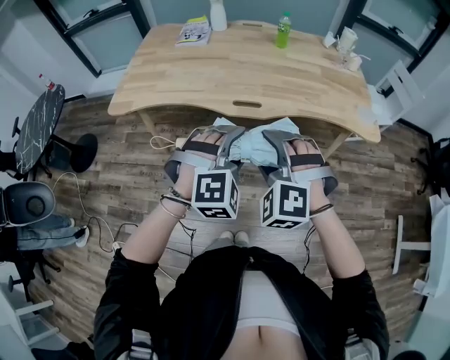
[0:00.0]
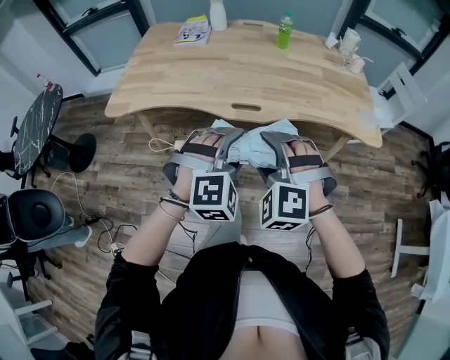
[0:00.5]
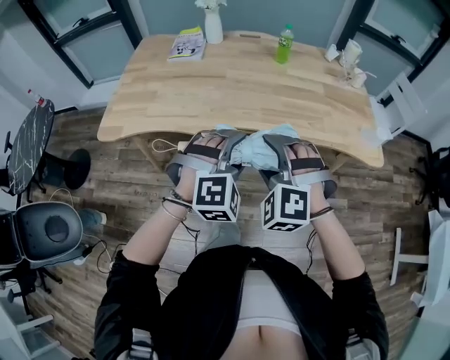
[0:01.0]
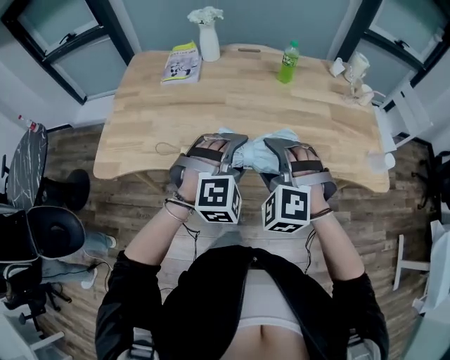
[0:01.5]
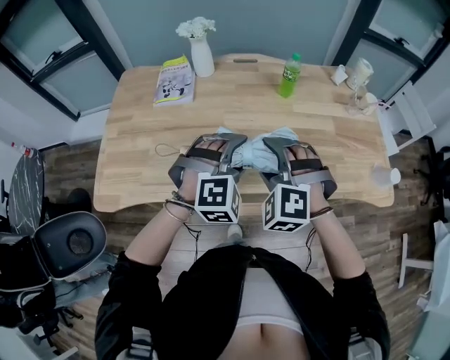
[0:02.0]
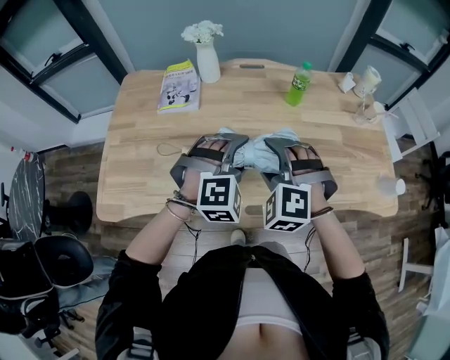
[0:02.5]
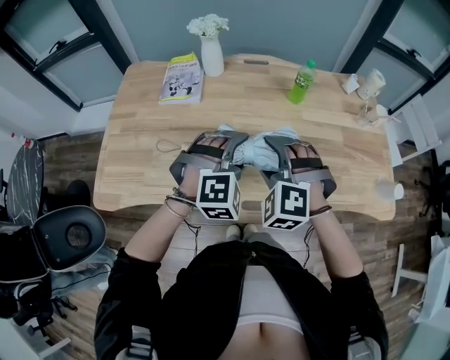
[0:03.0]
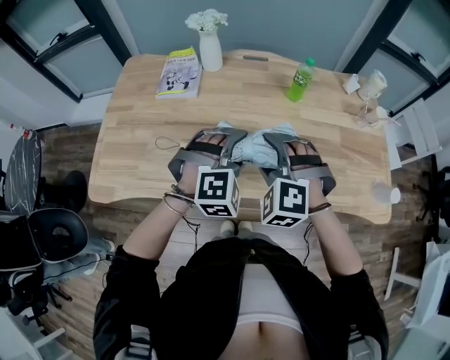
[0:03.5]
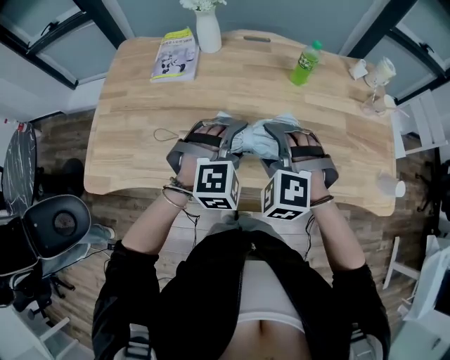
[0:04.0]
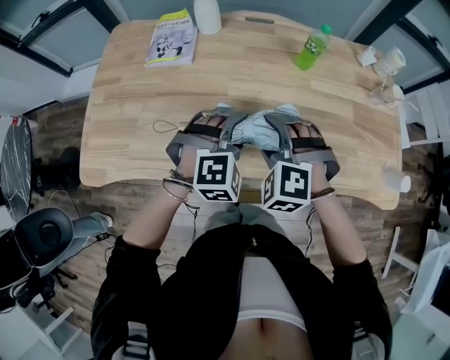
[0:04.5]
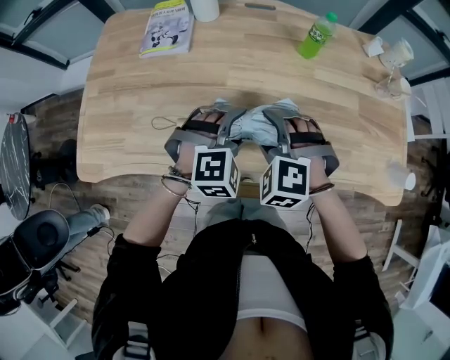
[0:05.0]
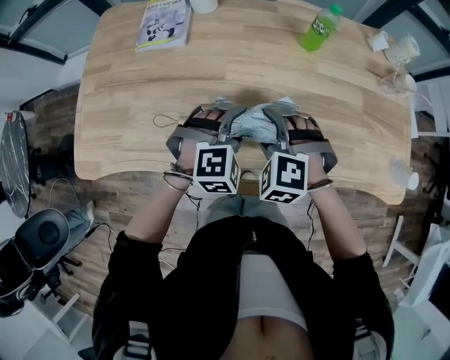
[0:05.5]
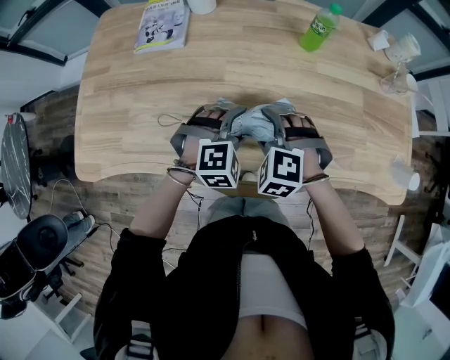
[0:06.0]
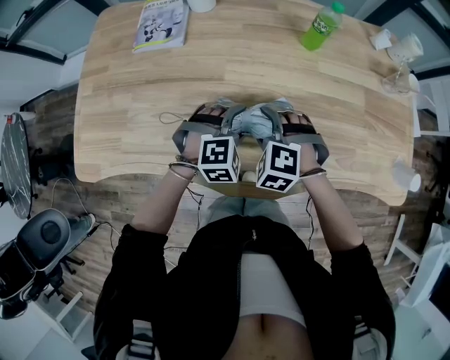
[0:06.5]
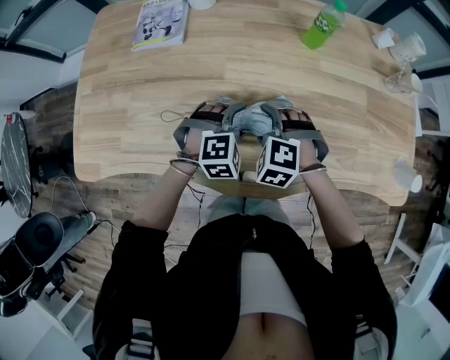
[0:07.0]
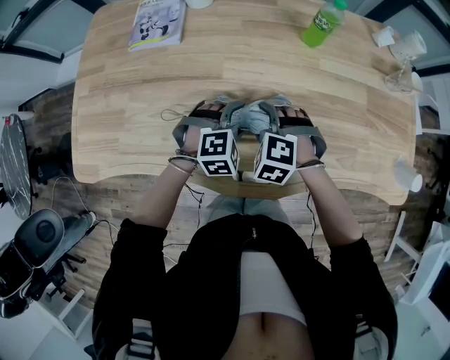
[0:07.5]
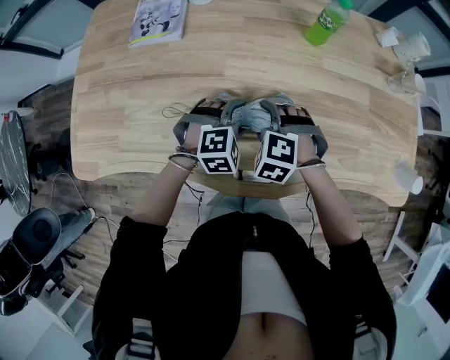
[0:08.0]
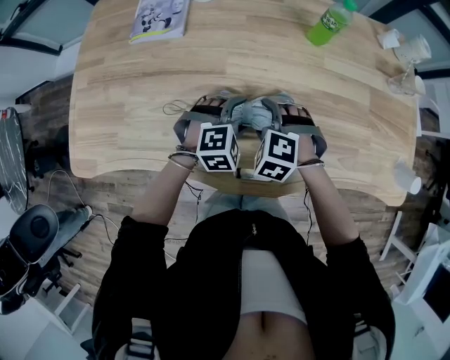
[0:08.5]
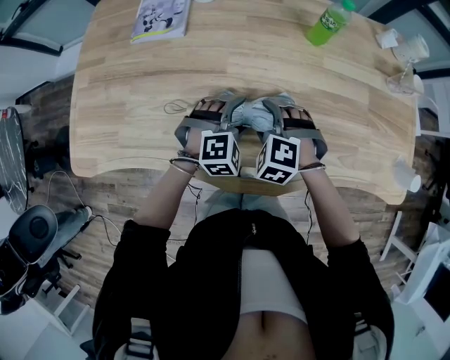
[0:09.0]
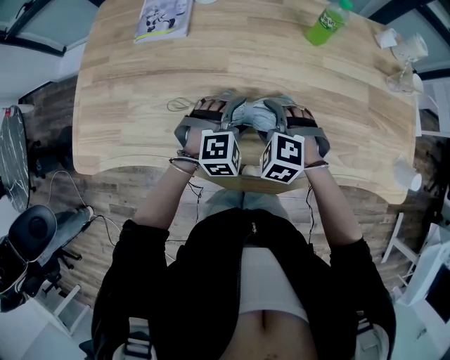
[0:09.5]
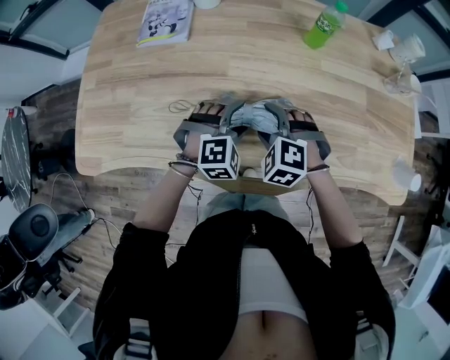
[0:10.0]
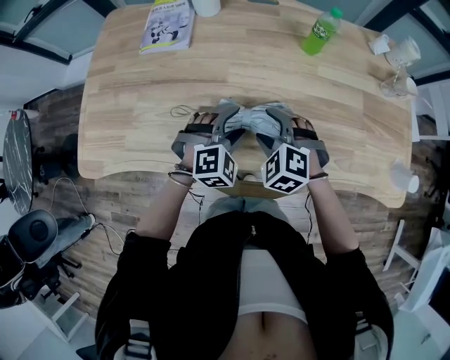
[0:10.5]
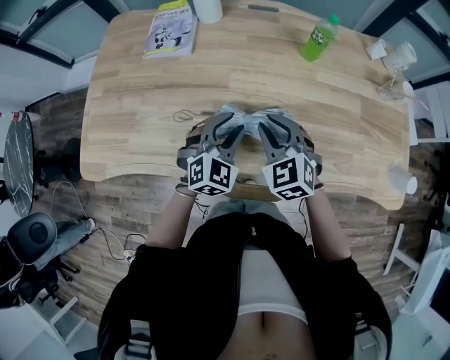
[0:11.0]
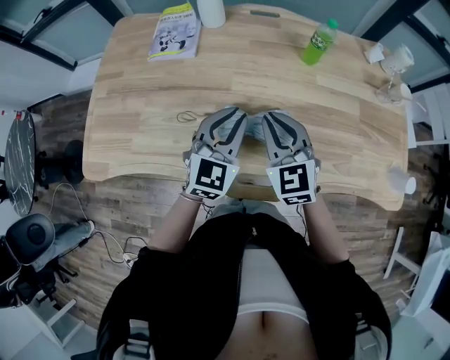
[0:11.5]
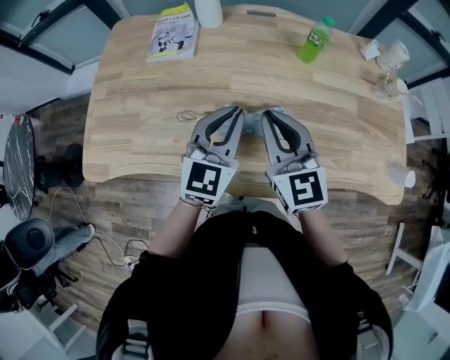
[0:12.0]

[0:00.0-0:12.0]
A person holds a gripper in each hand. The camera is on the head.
0.0 to 2.0 s: The grippers both shift forward by some 35 cm.
2.0 to 4.0 s: The left gripper changes place by approximately 5 cm. The right gripper moves roughly 5 cm.
4.0 to 6.0 s: The grippers both shift downward by roughly 10 cm.
6.0 to 8.0 s: The two grippers go roughly 5 cm downward.
8.0 to 10.0 s: The grippers move only a little.
10.0 to 12.0 s: The grippers both shift upward by roughly 20 cm. The left gripper tips its fingers upward by some 40 degrees, and closes up, while the right gripper tips its fingers upward by some 50 degrees, and closes its fingers.

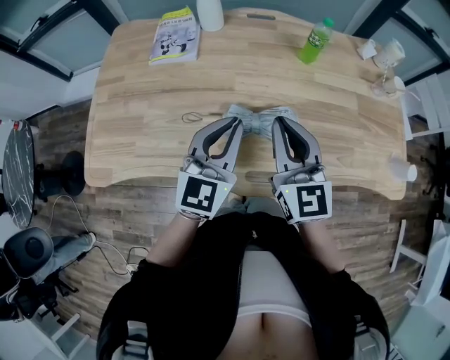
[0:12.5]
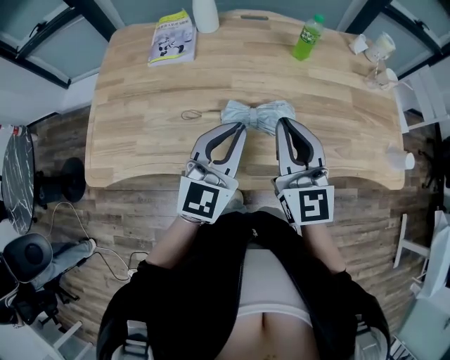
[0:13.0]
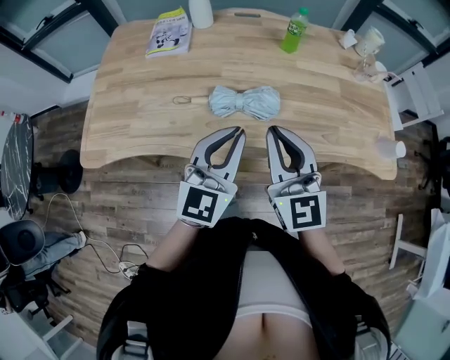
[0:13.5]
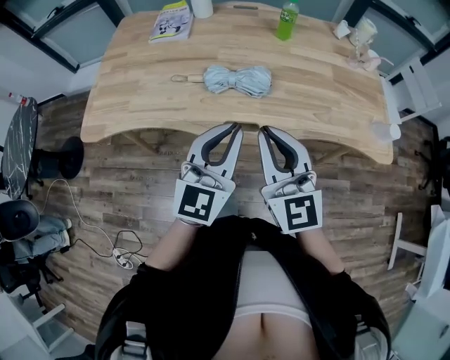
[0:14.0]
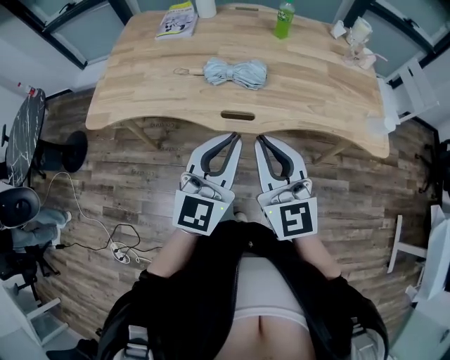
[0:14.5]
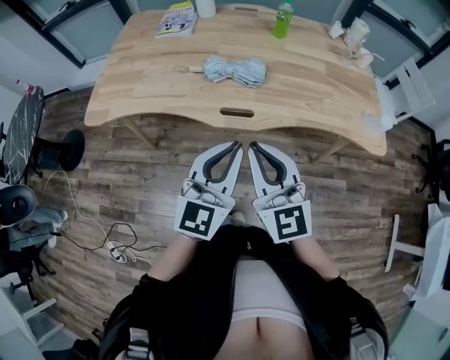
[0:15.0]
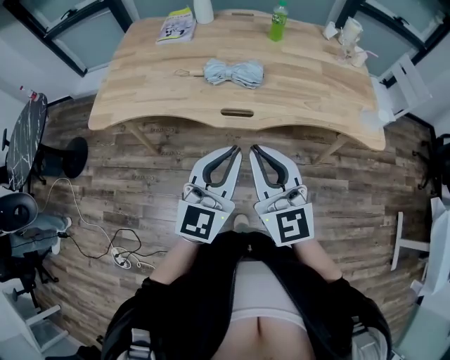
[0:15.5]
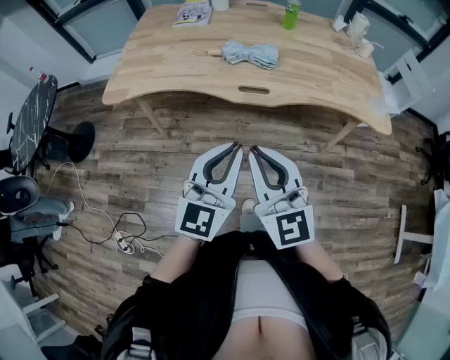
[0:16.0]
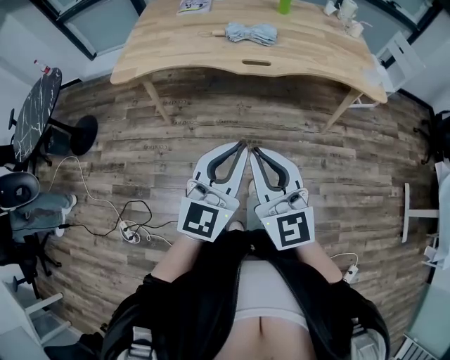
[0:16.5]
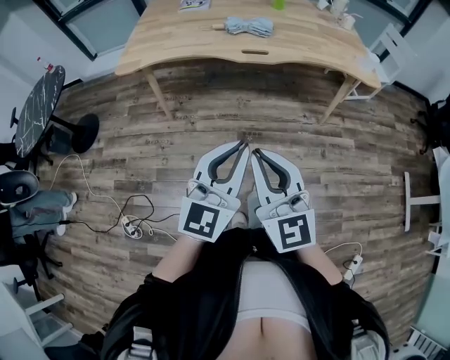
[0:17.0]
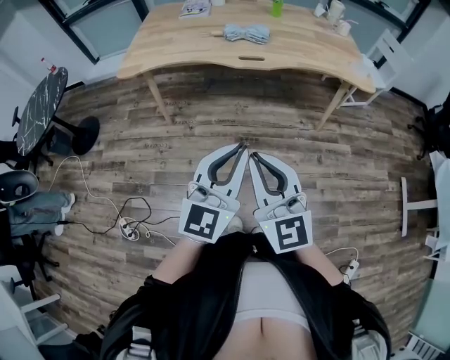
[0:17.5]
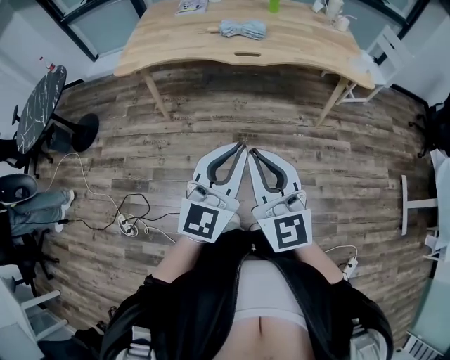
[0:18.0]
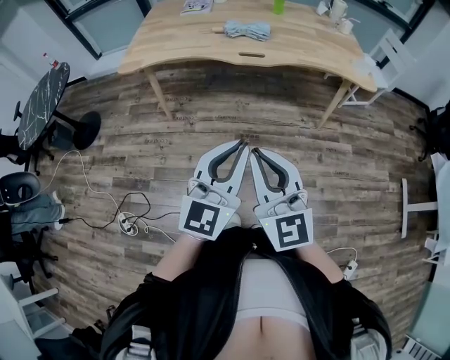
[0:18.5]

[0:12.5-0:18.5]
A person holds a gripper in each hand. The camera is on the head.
12.5 to 14.5 s: The two grippers go roughly 30 cm backward.
14.5 to 16.5 s: Both grippers move backward, some 30 cm.
16.5 to 18.5 s: The two grippers go approximately 10 cm backward.

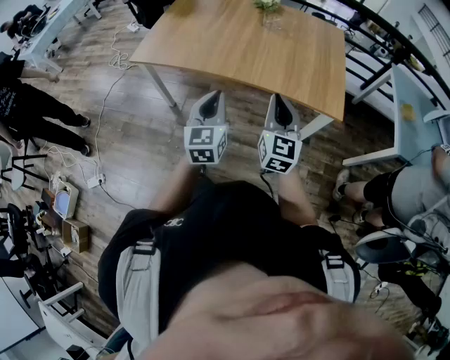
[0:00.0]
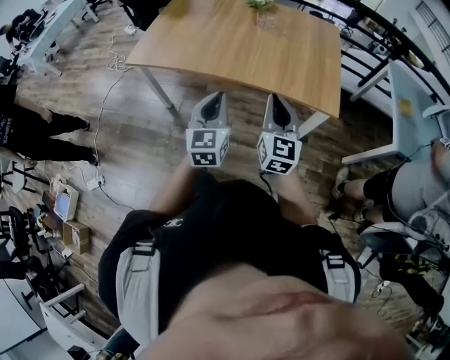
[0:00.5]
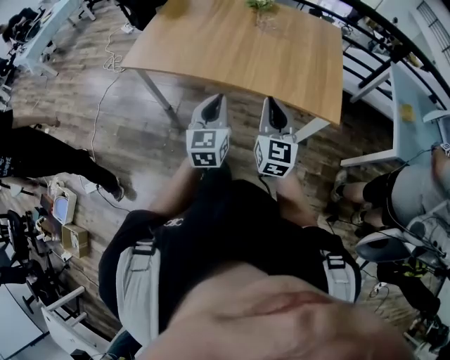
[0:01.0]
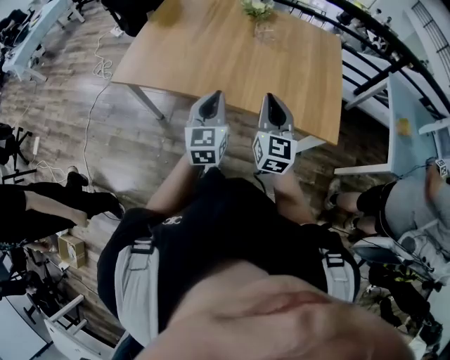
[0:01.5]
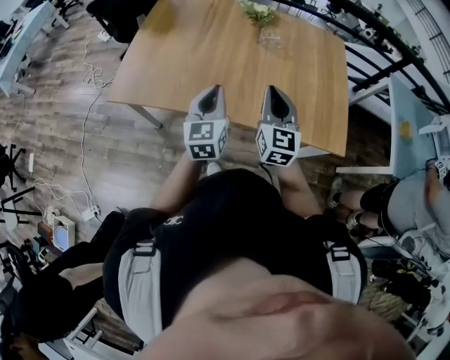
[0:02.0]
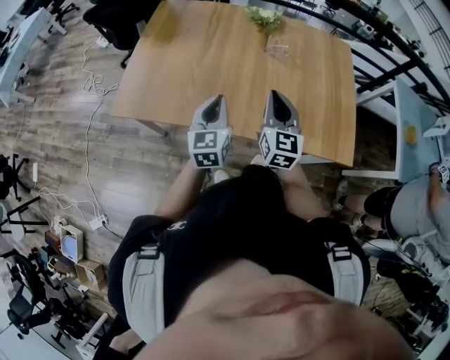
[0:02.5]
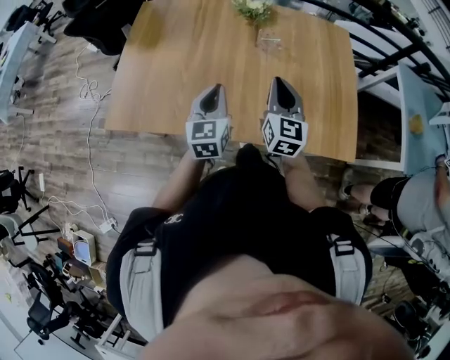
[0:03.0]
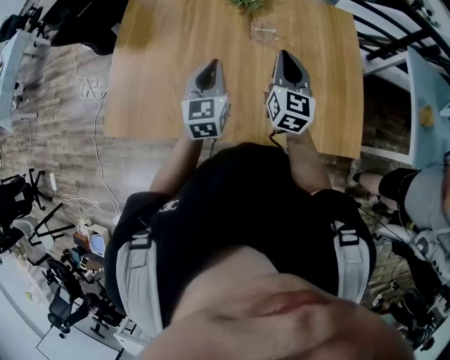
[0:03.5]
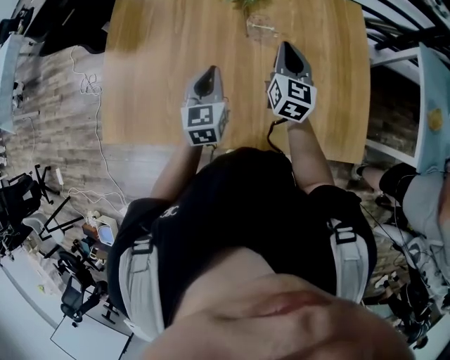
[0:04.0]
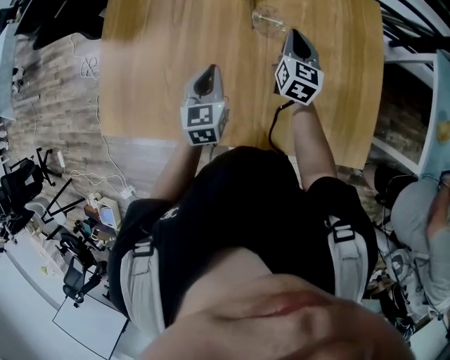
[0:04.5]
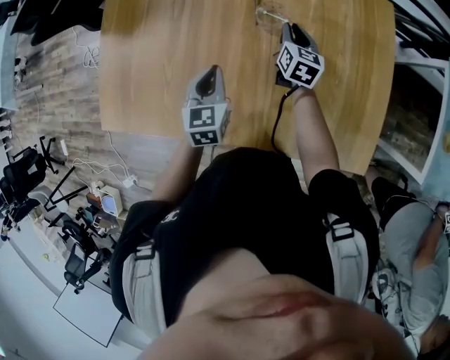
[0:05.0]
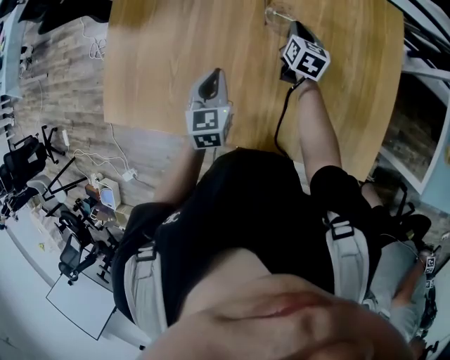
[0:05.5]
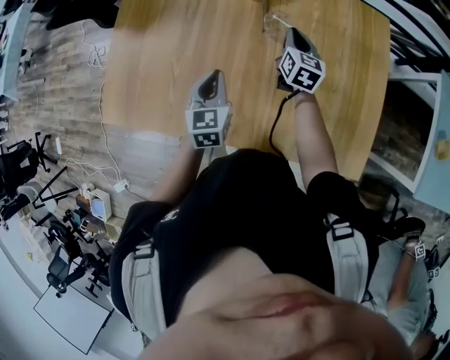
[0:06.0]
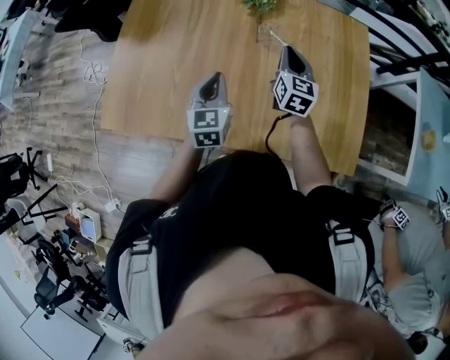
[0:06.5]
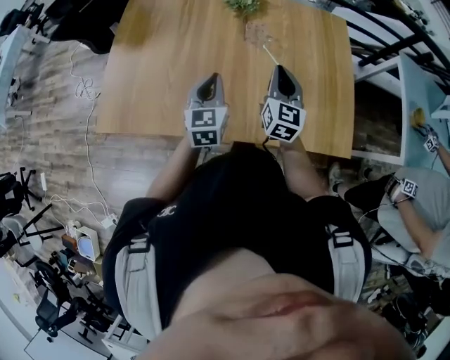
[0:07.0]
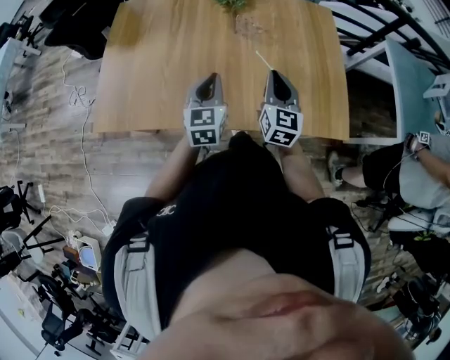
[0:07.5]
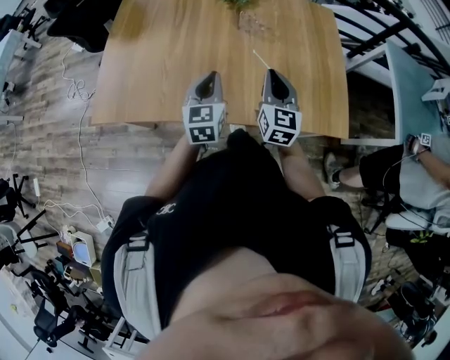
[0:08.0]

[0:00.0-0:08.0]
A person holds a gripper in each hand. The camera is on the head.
0.0 to 2.0 s: The grippers both shift forward by some 30 cm.
2.0 to 4.0 s: Both grippers travel together forward, roughly 30 cm. The right gripper changes its angle by about 20 degrees.
4.0 to 6.0 s: The right gripper moves downward and forward, roughly 15 cm.
6.0 to 8.0 s: The left gripper moves backward, some 15 cm. The right gripper heads backward, covering about 30 cm, and swivels about 20 degrees.

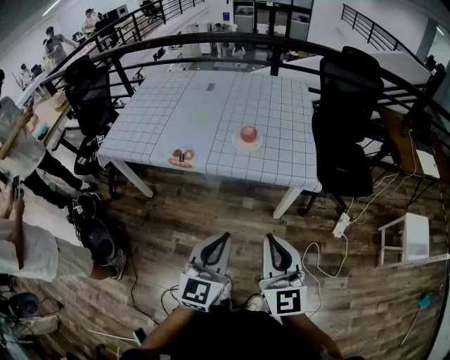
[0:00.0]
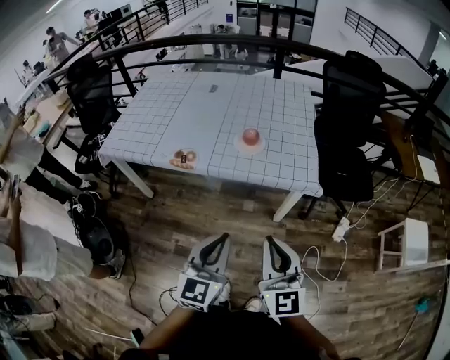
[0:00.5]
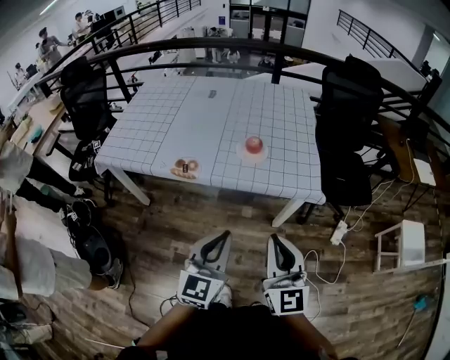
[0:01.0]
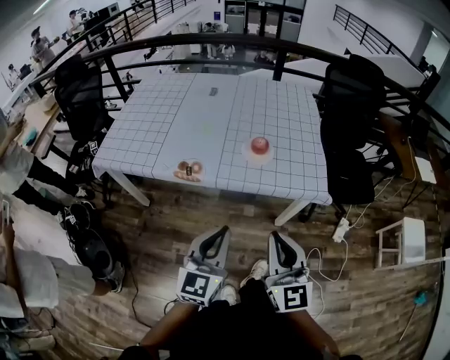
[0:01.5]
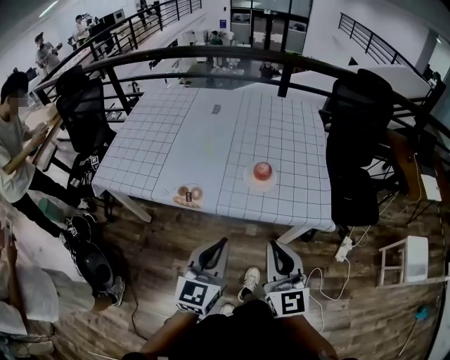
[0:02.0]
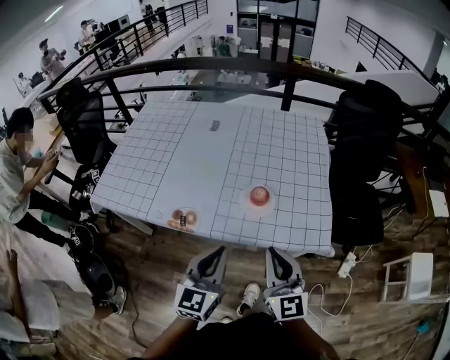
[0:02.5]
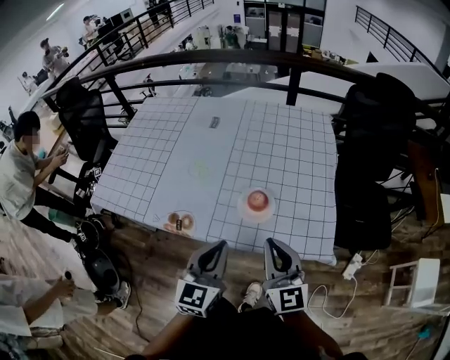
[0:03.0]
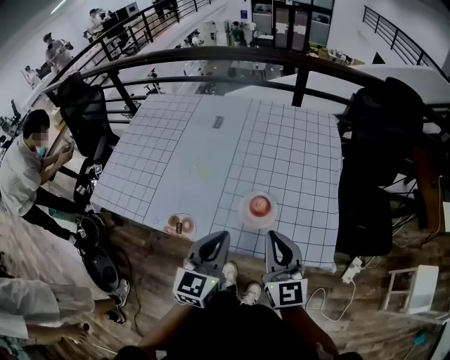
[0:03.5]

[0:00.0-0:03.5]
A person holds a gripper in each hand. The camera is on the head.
0.0 to 2.0 s: The grippers both shift forward and to the left by about 20 cm.
2.0 to 3.5 s: The grippers both shift forward by roughly 20 cm.
